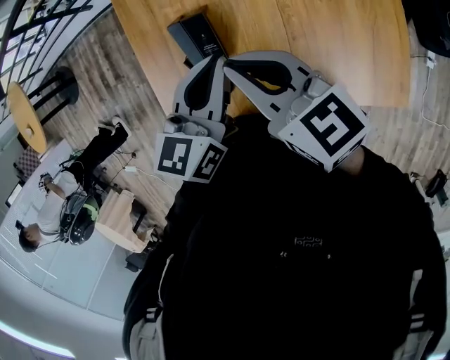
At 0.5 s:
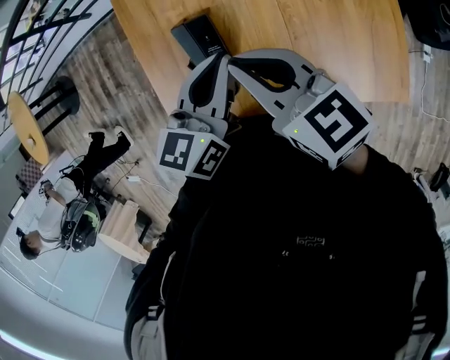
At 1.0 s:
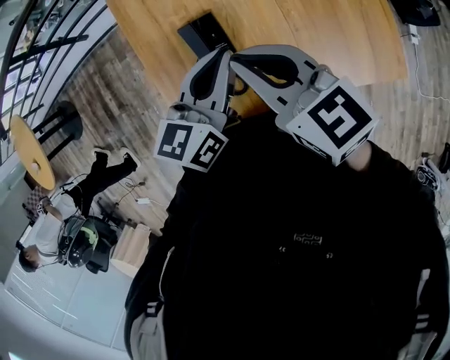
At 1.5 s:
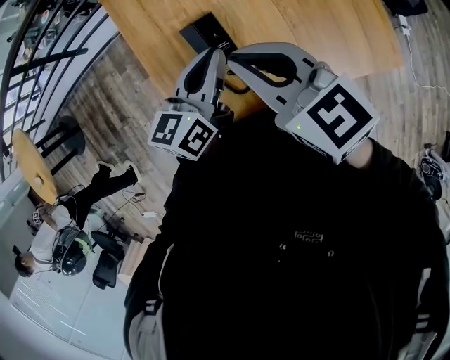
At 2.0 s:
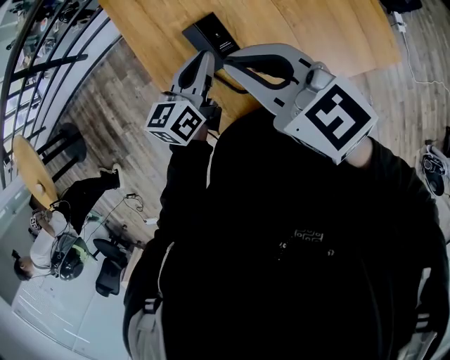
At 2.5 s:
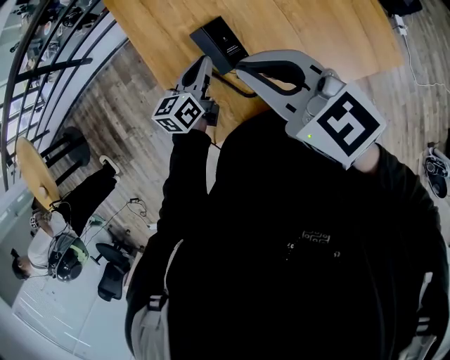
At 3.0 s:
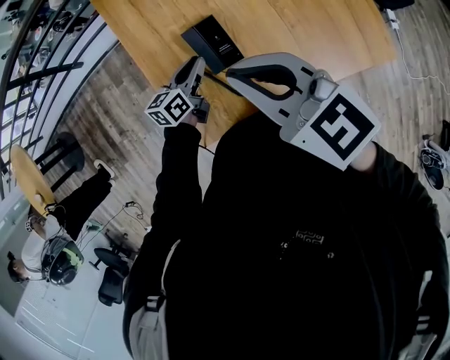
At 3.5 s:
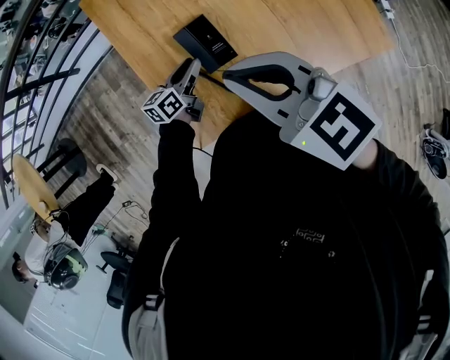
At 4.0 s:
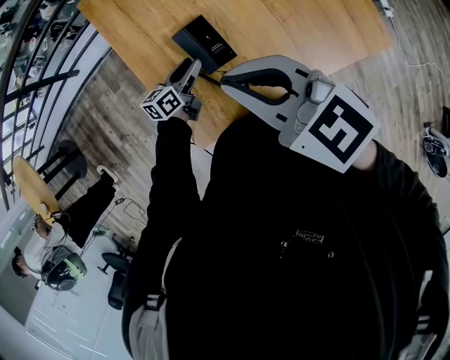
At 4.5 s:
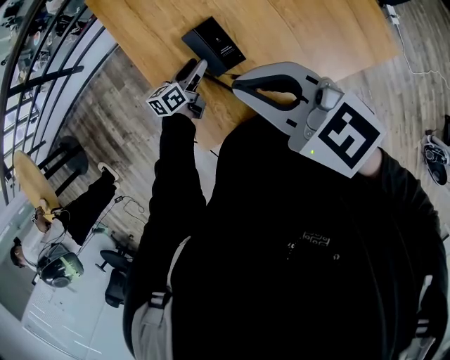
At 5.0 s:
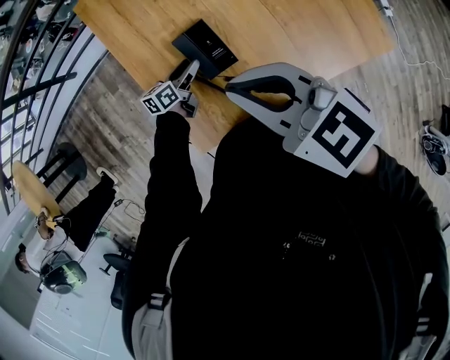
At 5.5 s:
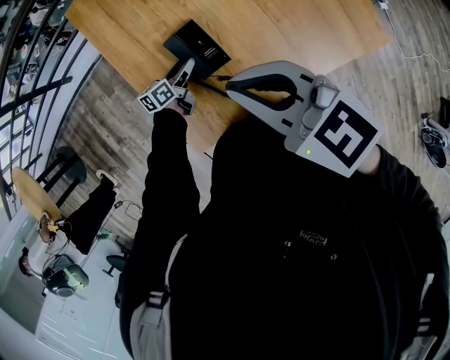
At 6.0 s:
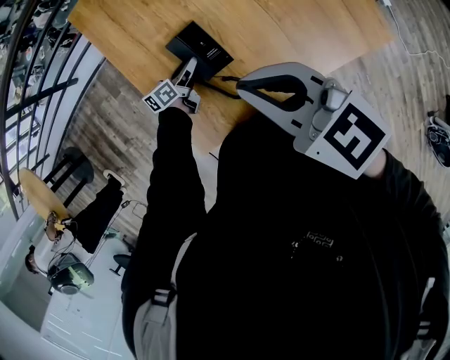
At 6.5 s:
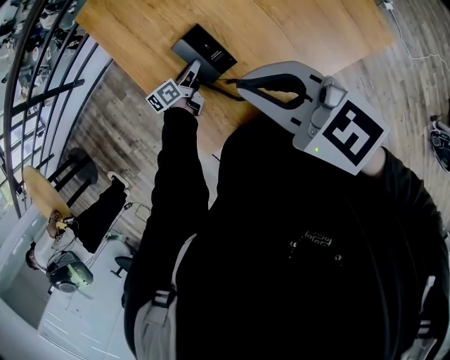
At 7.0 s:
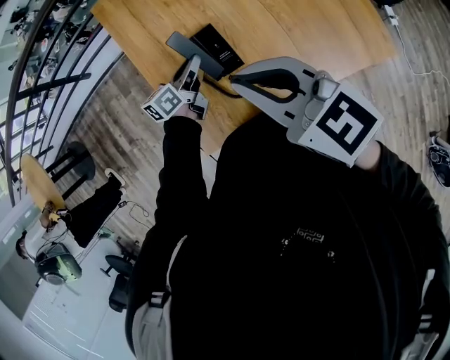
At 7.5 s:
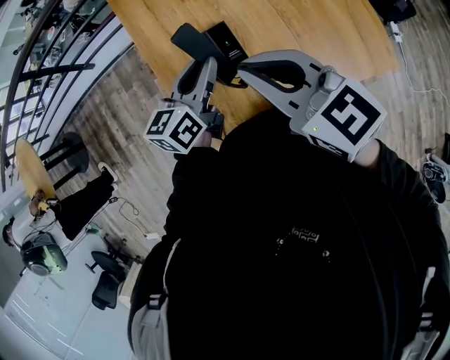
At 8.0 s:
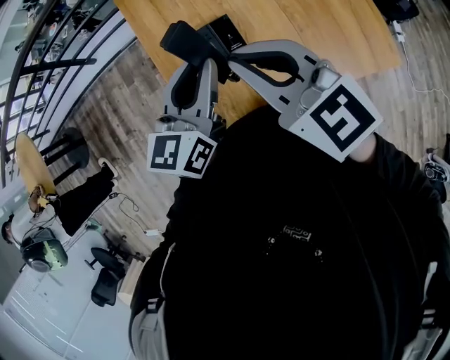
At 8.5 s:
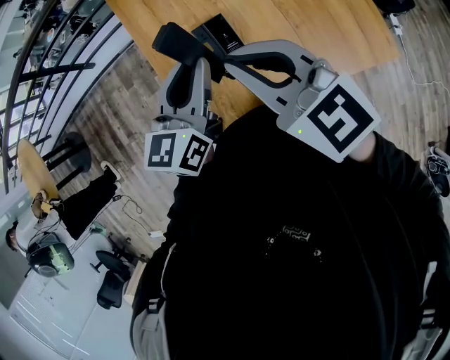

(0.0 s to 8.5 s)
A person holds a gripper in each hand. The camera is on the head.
0.0 s - 2.0 s: The left gripper moves to the left, approximately 15 cm, and rotates approximately 20 degrees. Meanwhile the right gripper moves to the left, upward and backward, about 15 cm.
2.0 s - 4.0 s: The left gripper shifts some 15 cm downward, and opens.
4.0 s - 6.5 s: The left gripper shifts approximately 5 cm downward.
6.5 s - 8.5 s: The left gripper heads upward, covering roughly 35 cm, and turns by some 50 degrees, while the right gripper travels to the left by about 5 cm.

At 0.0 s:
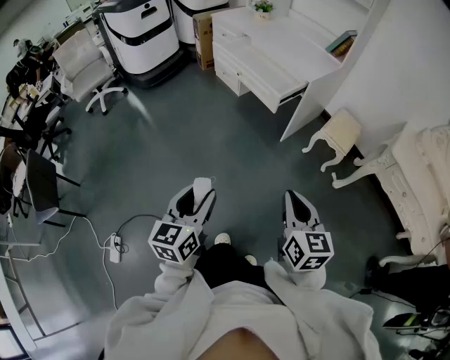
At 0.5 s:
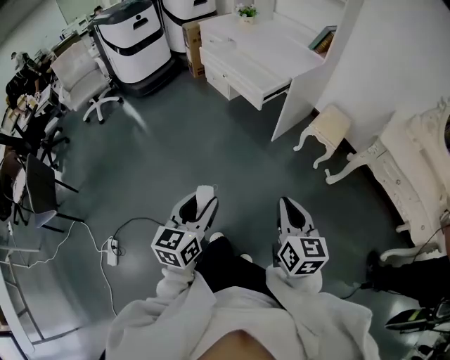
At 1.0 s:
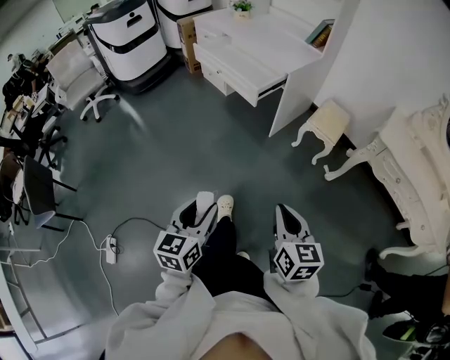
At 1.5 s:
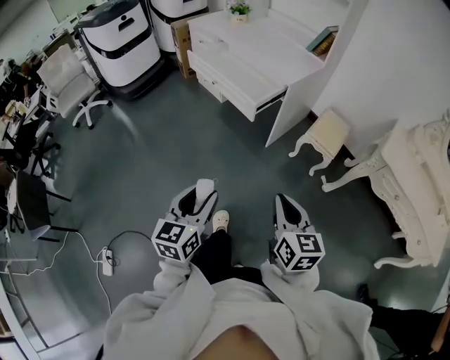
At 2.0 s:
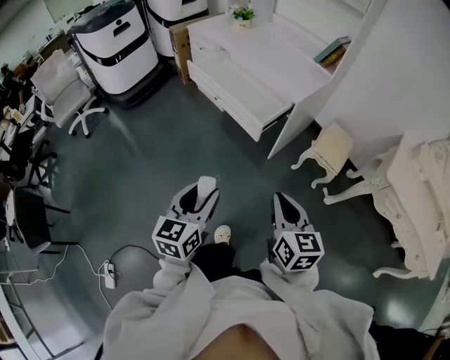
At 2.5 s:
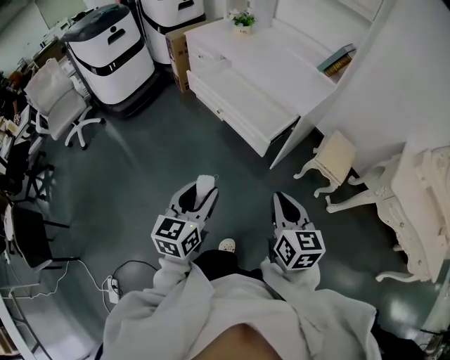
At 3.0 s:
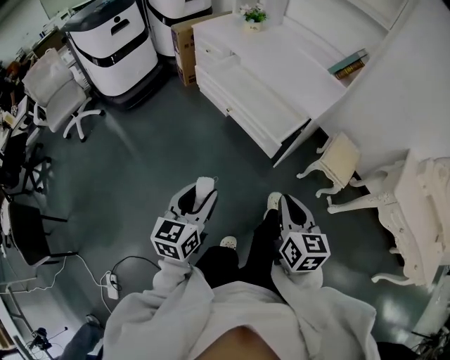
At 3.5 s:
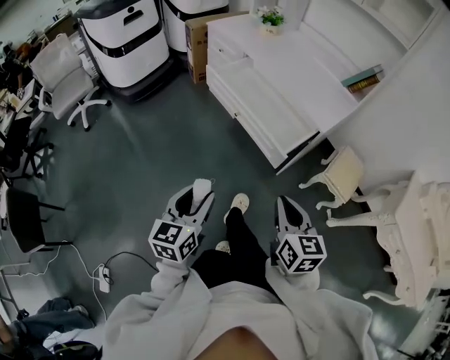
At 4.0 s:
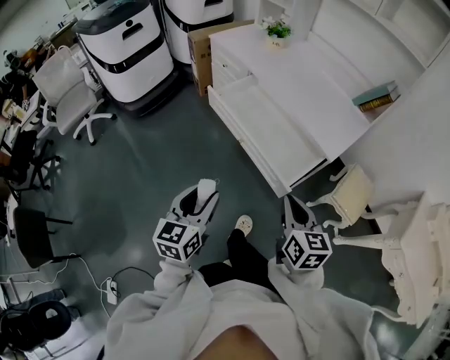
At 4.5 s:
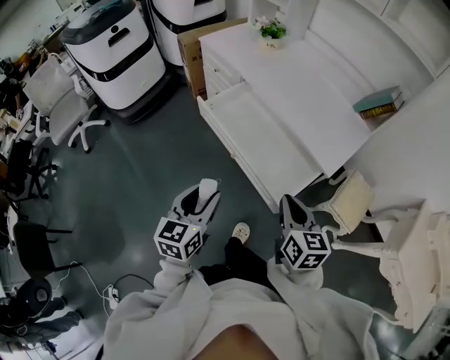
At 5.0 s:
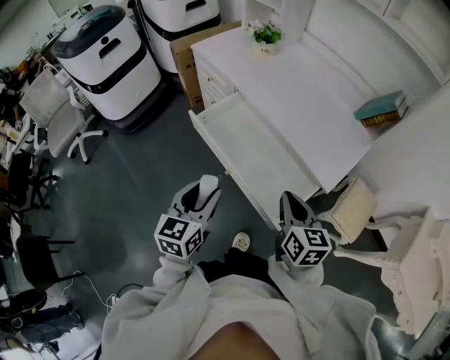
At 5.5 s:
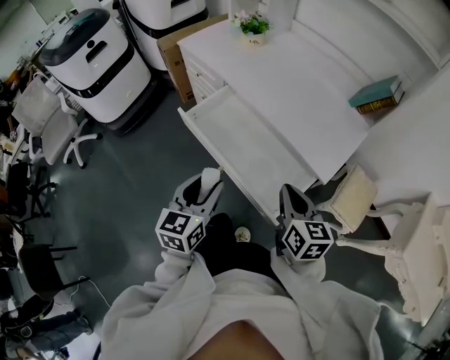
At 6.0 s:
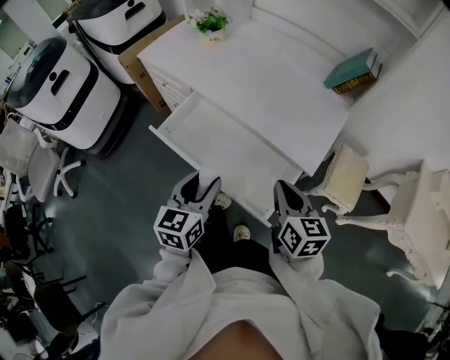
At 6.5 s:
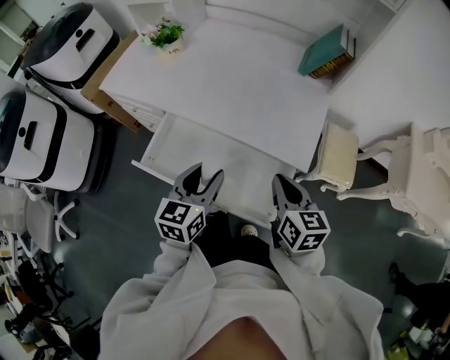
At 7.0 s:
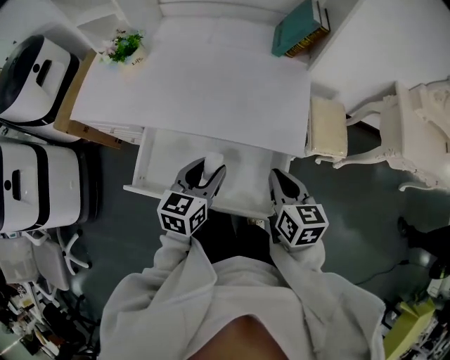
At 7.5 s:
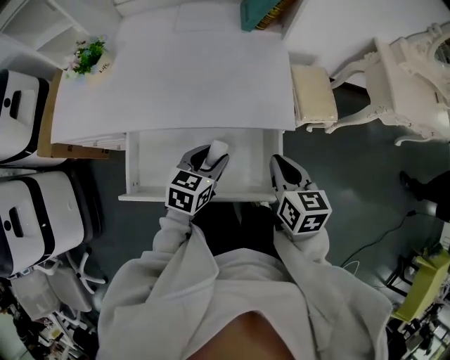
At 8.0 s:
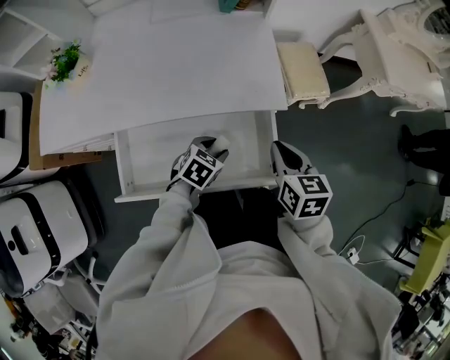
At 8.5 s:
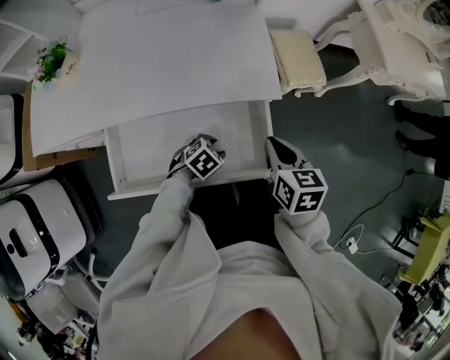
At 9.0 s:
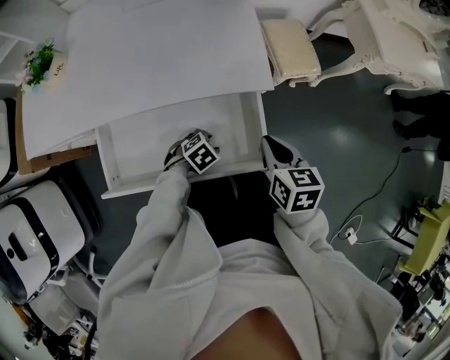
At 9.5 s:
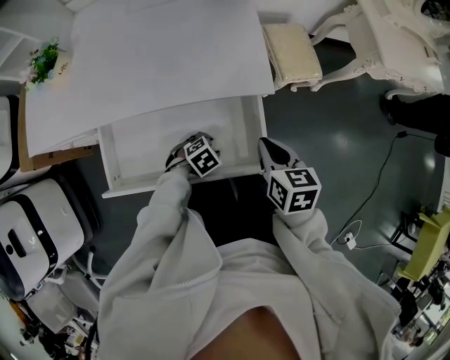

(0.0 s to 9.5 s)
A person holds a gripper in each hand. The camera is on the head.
0.0 s - 2.0 s: The grippers both shift forward by about 20 cm.
2.0 s - 4.0 s: The right gripper heads forward, covering some 25 cm. Meanwhile the left gripper is displaced forward and to the left by some 25 cm.
4.0 s - 5.5 s: The two grippers go approximately 20 cm forward.
5.5 s - 7.5 s: The right gripper moves roughly 5 cm, and turns by about 40 degrees; the left gripper shifts by roughly 25 cm, and changes its angle by about 60 degrees.
7.5 s - 9.5 s: The left gripper is displaced downward by about 20 cm, and tips its fingers downward by roughly 30 degrees. The right gripper shifts by some 5 cm.

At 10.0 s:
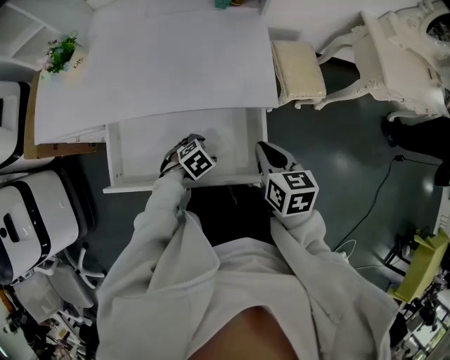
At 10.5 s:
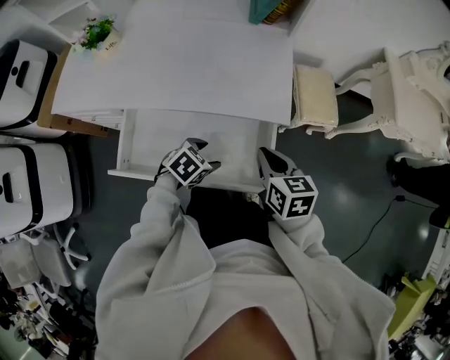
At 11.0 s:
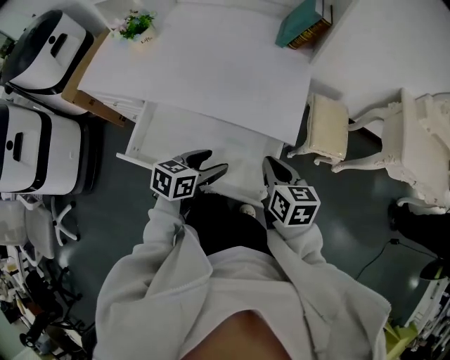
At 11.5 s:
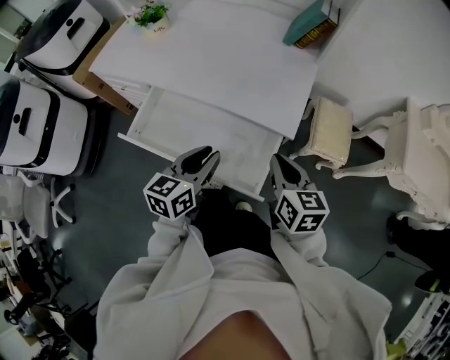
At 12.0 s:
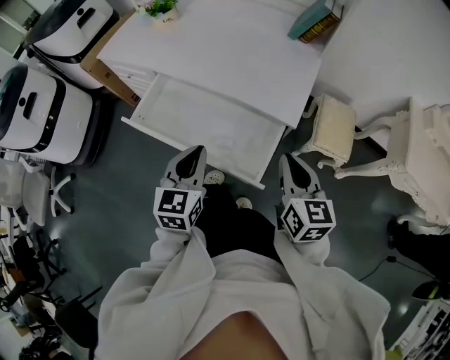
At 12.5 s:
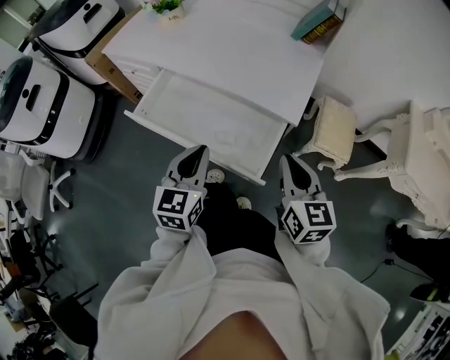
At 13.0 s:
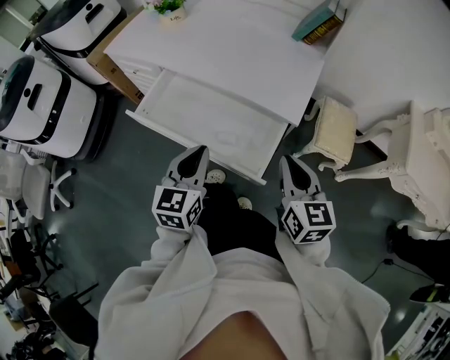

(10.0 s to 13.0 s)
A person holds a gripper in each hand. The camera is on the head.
10.0 s - 11.5 s: The left gripper travels upward by about 25 cm, tilts its fingers approximately 50 degrees upward, and closes its fingers. The right gripper heads upward, covering roughly 5 cm, and turns by roughly 20 degrees.
11.5 s - 13.0 s: The grippers both shift backward by some 5 cm. The left gripper rotates roughly 20 degrees.

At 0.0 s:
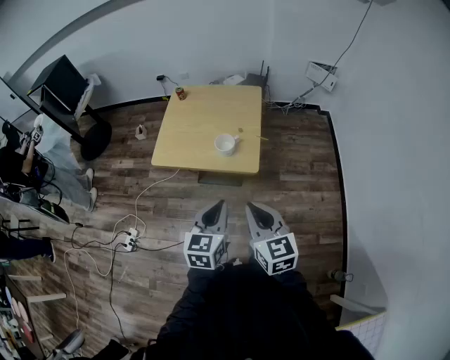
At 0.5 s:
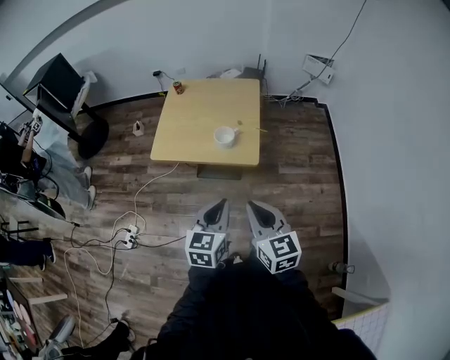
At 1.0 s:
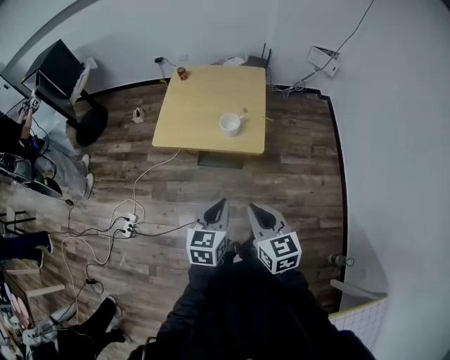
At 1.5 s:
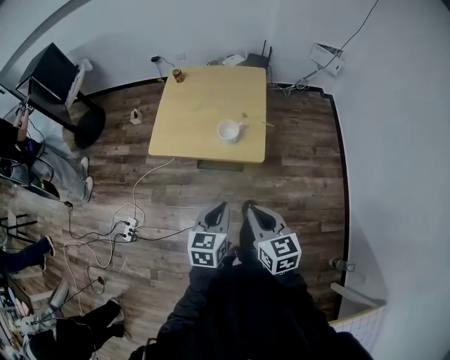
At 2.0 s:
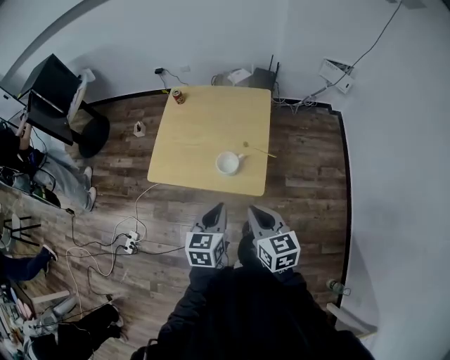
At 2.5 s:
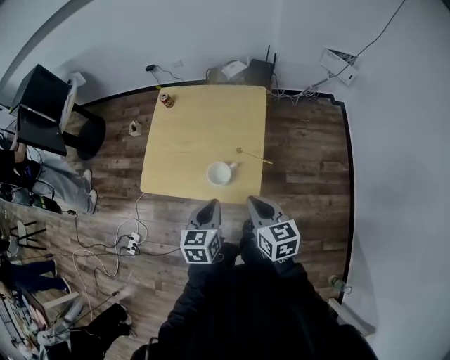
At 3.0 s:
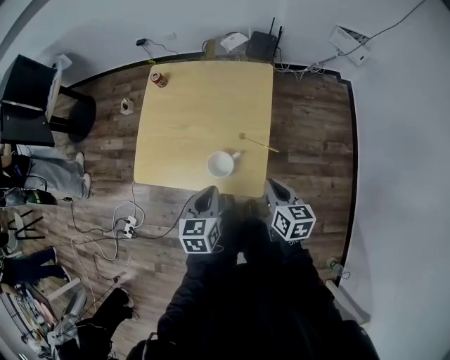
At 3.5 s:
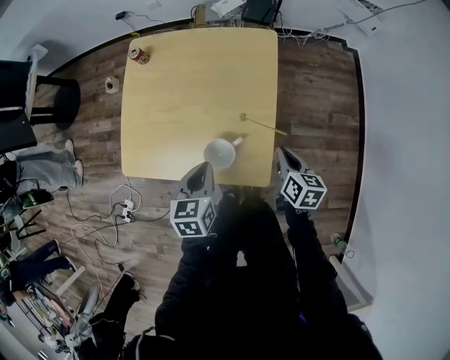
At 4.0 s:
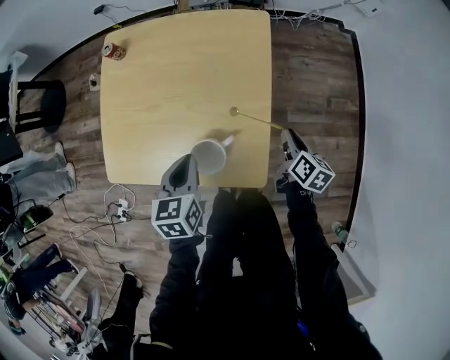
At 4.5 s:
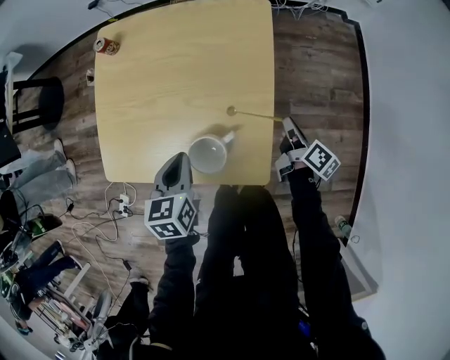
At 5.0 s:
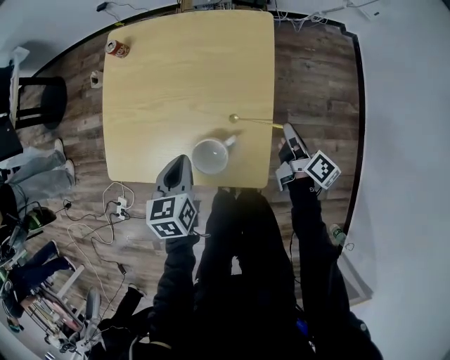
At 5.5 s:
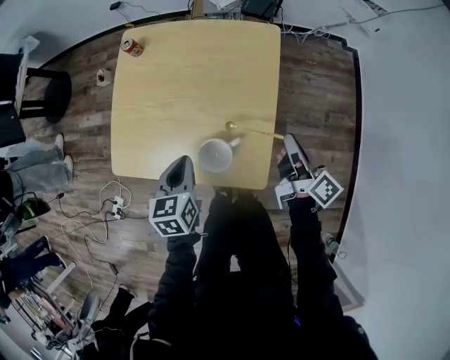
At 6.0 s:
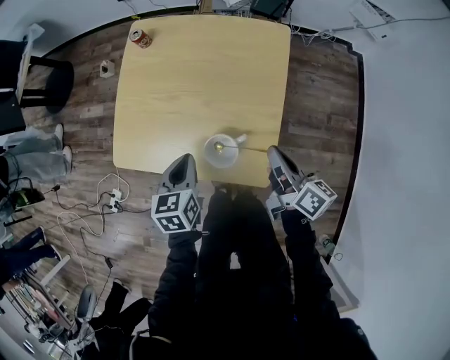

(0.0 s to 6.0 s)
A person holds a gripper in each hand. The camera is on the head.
0.0 s - 2.0 s: The grippers both shift forward and downward by some 20 cm.
2.0 s - 4.0 s: The left gripper goes approximately 30 cm forward and downward. Meanwhile the right gripper is displaced downward, forward and to the right by roughly 50 cm, and swivels approximately 50 degrees.
4.0 s - 6.0 s: The right gripper shifts approximately 20 cm upward and to the left, and swivels some 30 degrees. The left gripper travels to the left by some 5 cm.
